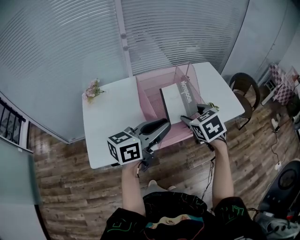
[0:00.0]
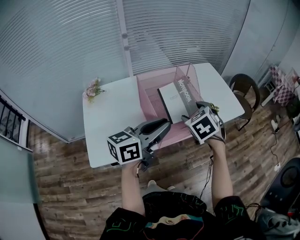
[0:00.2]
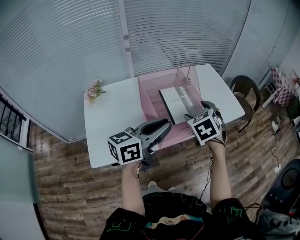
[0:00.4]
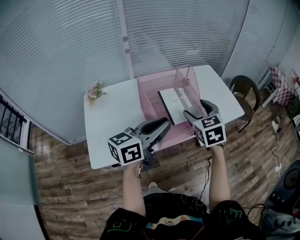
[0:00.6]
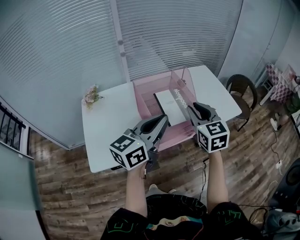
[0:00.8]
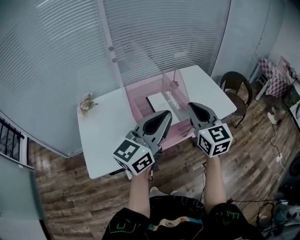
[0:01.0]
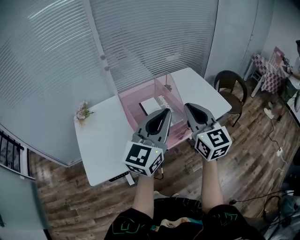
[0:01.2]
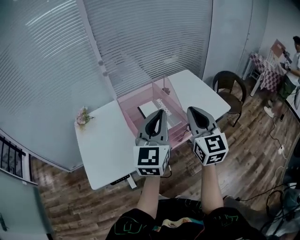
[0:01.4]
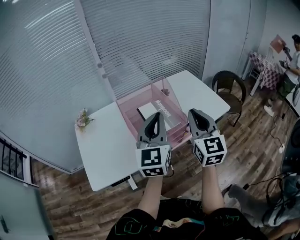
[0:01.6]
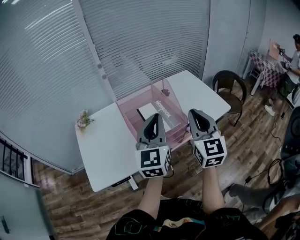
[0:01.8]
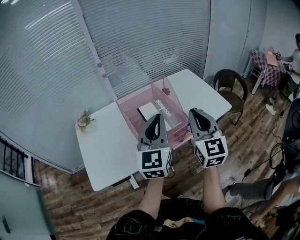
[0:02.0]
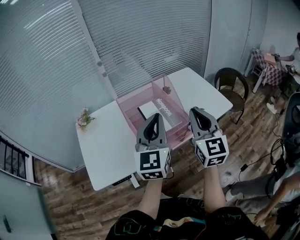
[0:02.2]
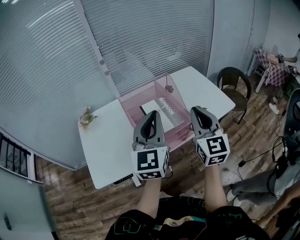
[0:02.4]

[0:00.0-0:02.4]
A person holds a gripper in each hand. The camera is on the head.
0:00.0 to 0:01.2: Both grippers move upward and to the right, approximately 15 cm. The right gripper angles its fingers upward, by roughly 50 degrees, and closes up, while the left gripper rotates approximately 40 degrees.
0:01.2 to 0:02.4: The left gripper rotates approximately 20 degrees.

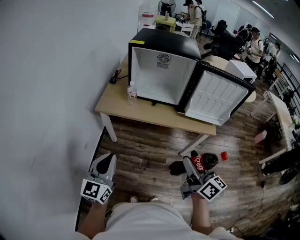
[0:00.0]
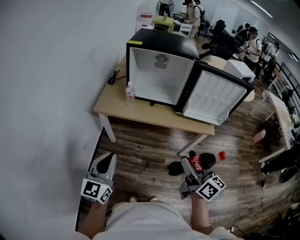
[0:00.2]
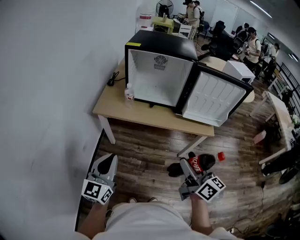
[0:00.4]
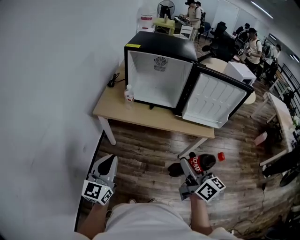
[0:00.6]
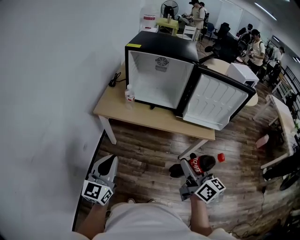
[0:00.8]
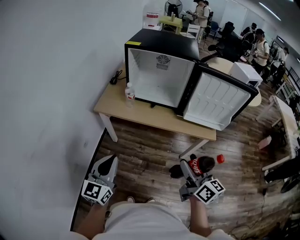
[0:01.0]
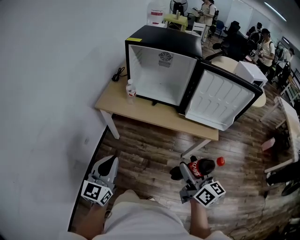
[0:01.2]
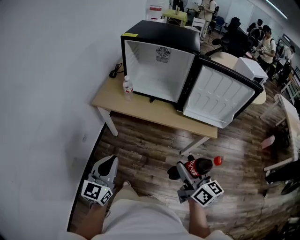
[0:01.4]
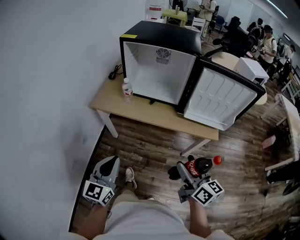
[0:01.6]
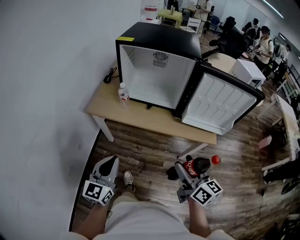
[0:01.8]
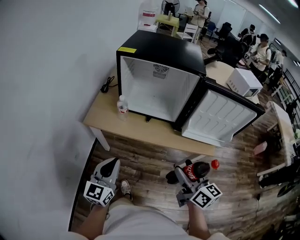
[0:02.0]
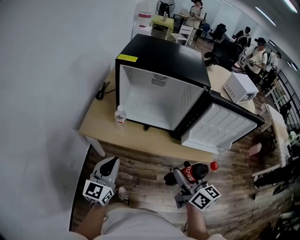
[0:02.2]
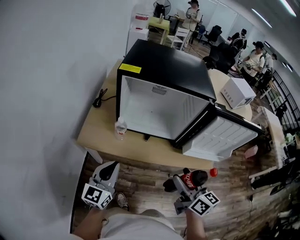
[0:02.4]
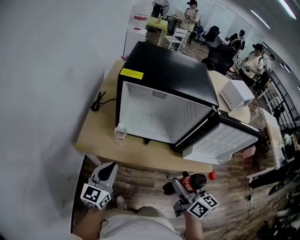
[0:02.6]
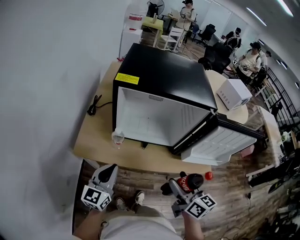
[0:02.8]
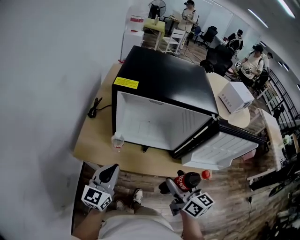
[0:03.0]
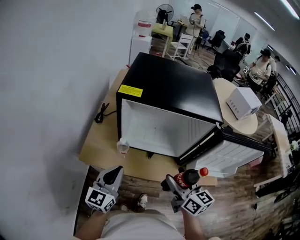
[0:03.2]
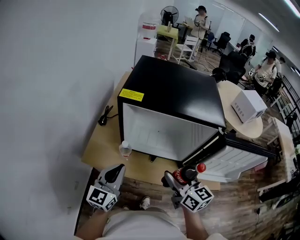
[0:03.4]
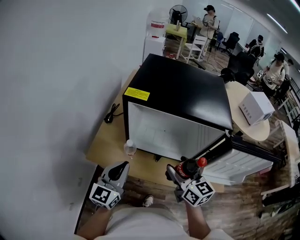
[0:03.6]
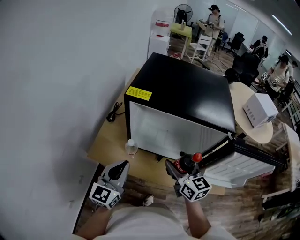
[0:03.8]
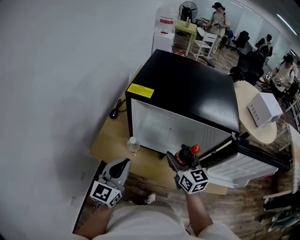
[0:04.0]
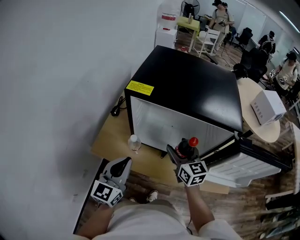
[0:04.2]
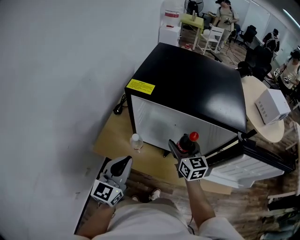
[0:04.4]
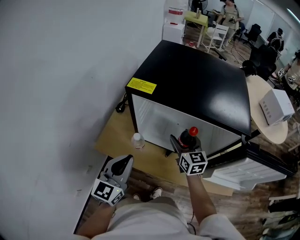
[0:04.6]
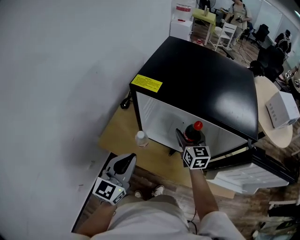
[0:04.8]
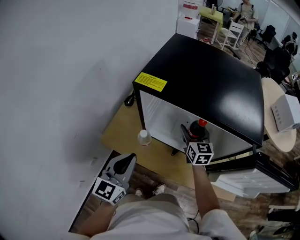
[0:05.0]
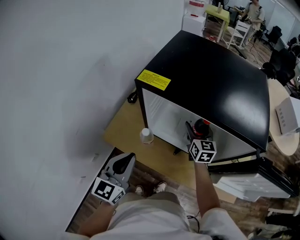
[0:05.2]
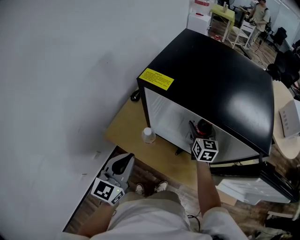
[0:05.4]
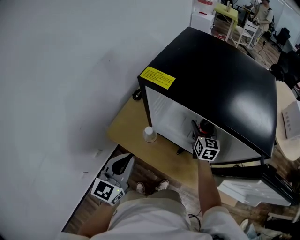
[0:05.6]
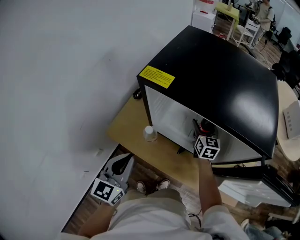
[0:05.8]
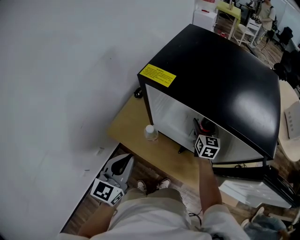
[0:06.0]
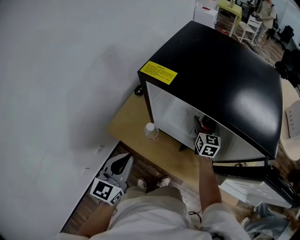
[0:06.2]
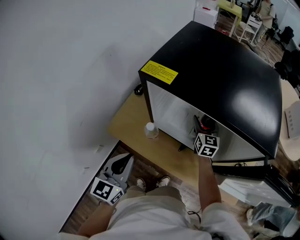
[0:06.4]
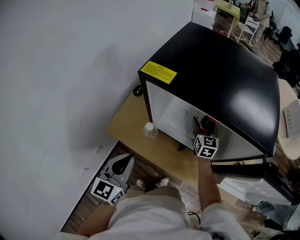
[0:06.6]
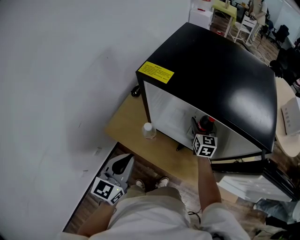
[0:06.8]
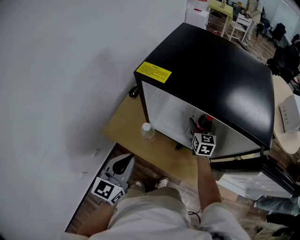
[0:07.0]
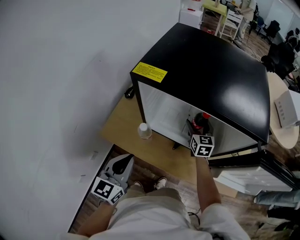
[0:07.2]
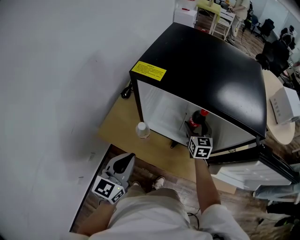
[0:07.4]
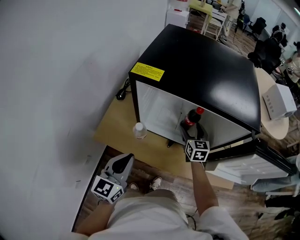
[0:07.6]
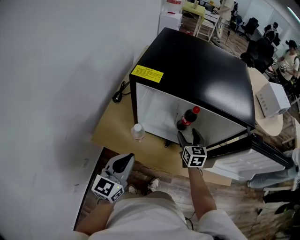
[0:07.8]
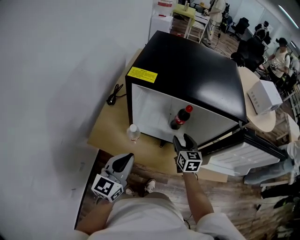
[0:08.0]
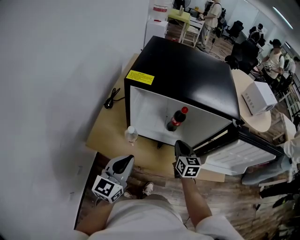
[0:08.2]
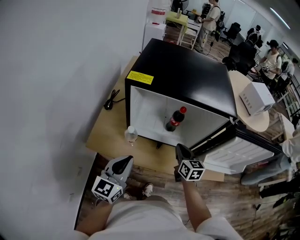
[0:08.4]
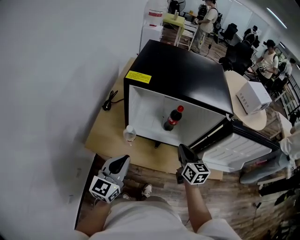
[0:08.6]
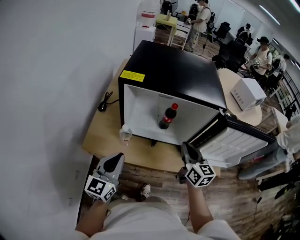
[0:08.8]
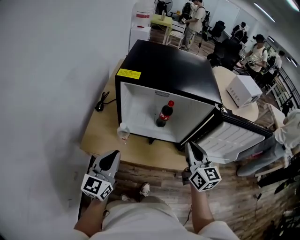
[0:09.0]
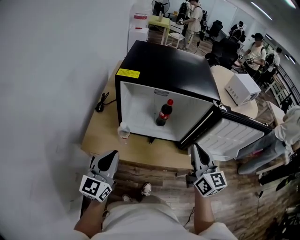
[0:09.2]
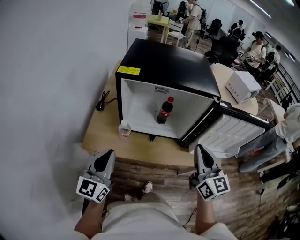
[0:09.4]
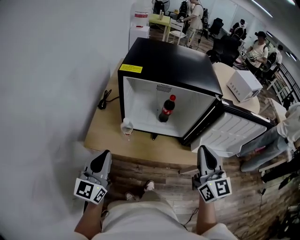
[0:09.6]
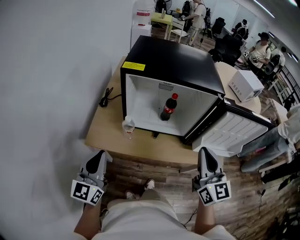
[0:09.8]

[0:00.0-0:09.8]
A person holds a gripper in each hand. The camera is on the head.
0:00.0 to 0:01.4: Both grippers travel together to the right, approximately 10 cm.
0:01.4 to 0:02.8: The left gripper shifts approximately 30 cm forward; the right gripper goes approximately 25 cm forward and to the left.
0:02.8 to 0:04.2: The left gripper moves forward, some 5 cm, while the right gripper is displaced forward by about 25 cm, and turns by roughly 20 degrees.
0:04.2 to 0:05.6: The right gripper goes approximately 20 cm forward and downward.
0:05.6 to 0:07.0: The grippers move only a little.
0:07.0 to 0:08.4: The right gripper travels backward by approximately 20 cm, and closes up.
0:08.4 to 0:09.8: The left gripper moves to the left, backward and upward, approximately 15 cm, while the right gripper goes some 25 cm upward and backward, and turns by some 30 degrees.

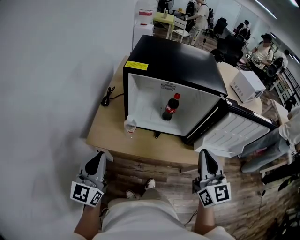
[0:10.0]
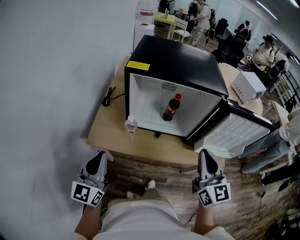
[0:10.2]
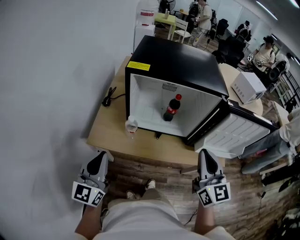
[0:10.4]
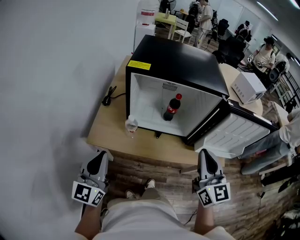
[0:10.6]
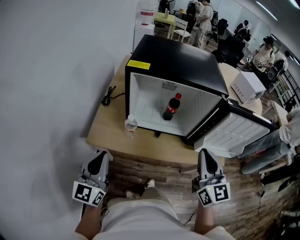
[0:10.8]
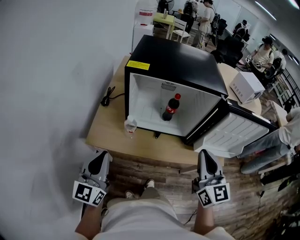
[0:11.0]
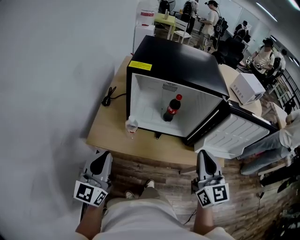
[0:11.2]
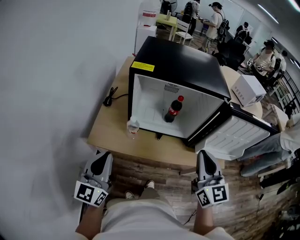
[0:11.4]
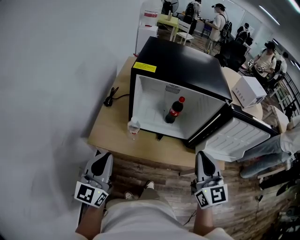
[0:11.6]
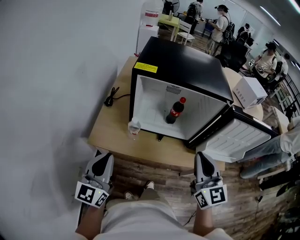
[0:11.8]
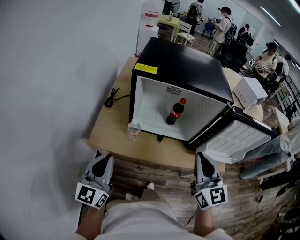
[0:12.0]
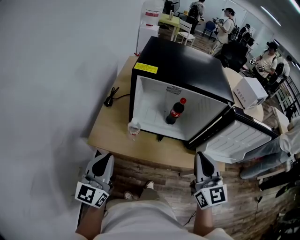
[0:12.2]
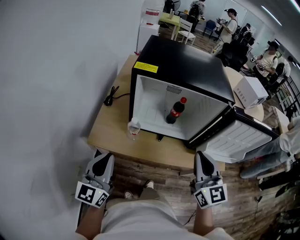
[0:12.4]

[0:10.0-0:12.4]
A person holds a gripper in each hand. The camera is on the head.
0:10.0 to 0:12.4: The grippers move only a little.

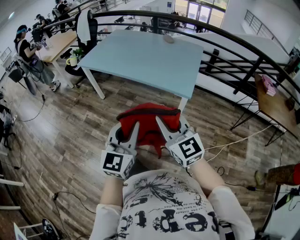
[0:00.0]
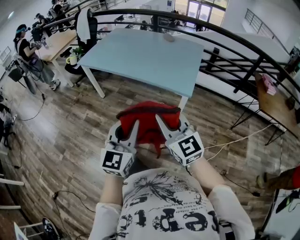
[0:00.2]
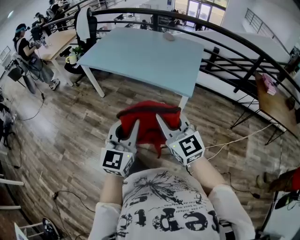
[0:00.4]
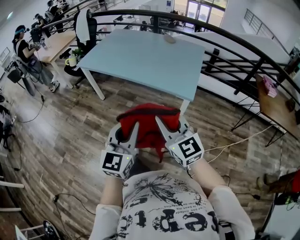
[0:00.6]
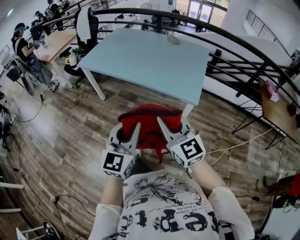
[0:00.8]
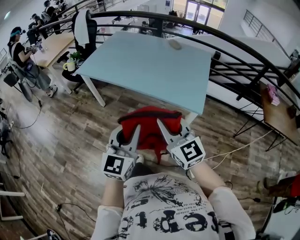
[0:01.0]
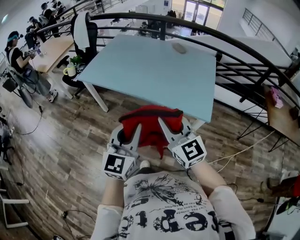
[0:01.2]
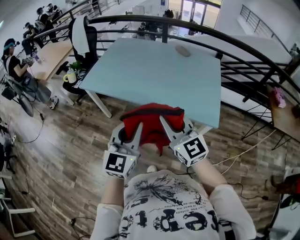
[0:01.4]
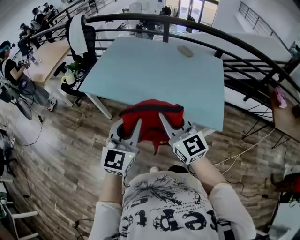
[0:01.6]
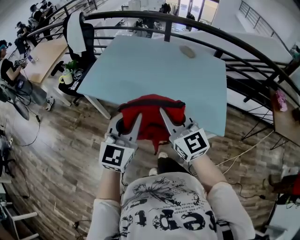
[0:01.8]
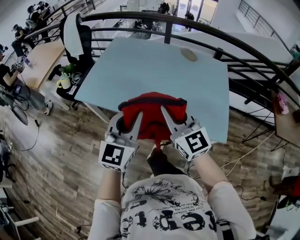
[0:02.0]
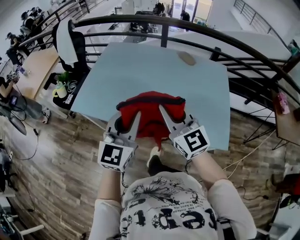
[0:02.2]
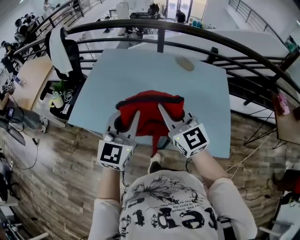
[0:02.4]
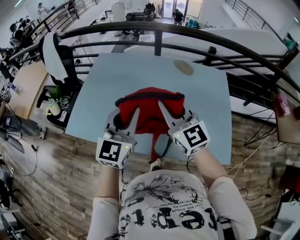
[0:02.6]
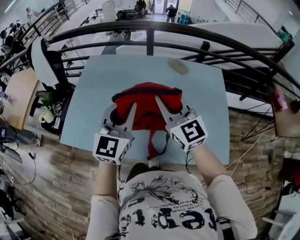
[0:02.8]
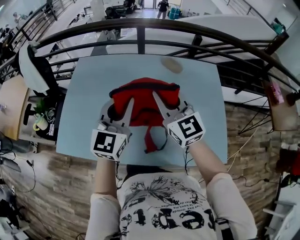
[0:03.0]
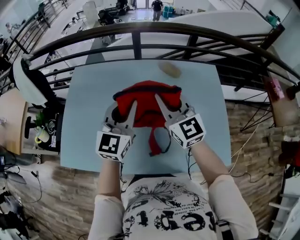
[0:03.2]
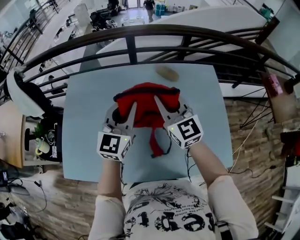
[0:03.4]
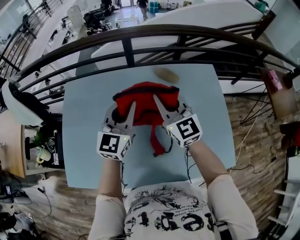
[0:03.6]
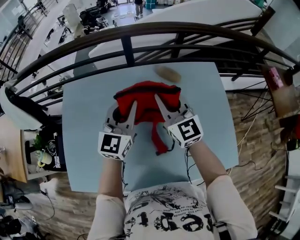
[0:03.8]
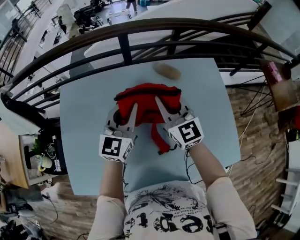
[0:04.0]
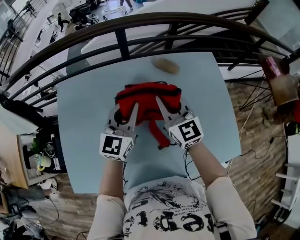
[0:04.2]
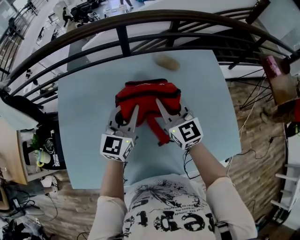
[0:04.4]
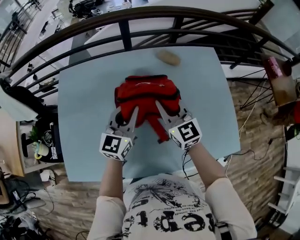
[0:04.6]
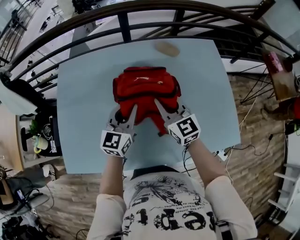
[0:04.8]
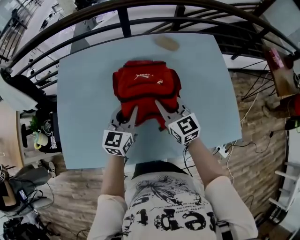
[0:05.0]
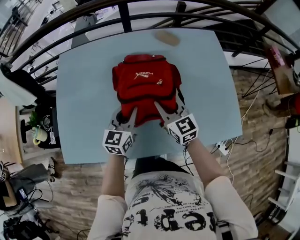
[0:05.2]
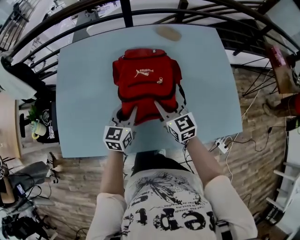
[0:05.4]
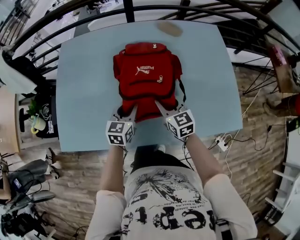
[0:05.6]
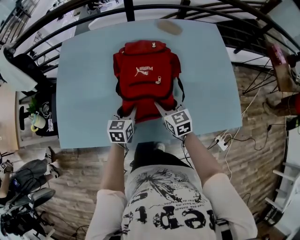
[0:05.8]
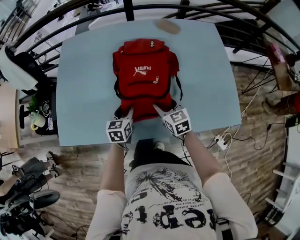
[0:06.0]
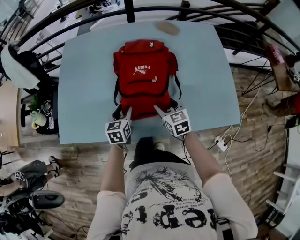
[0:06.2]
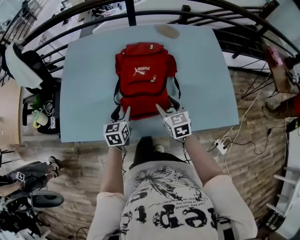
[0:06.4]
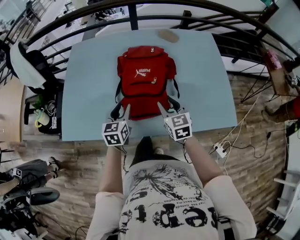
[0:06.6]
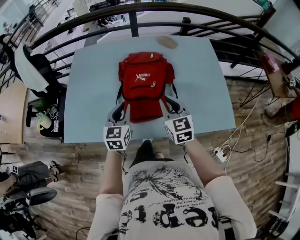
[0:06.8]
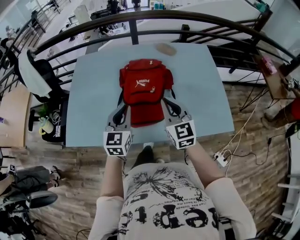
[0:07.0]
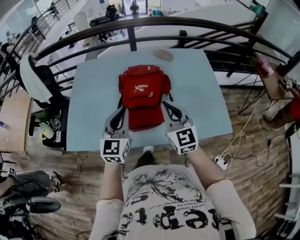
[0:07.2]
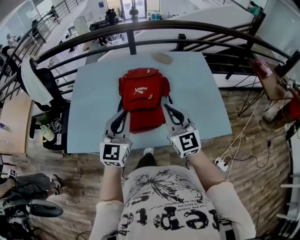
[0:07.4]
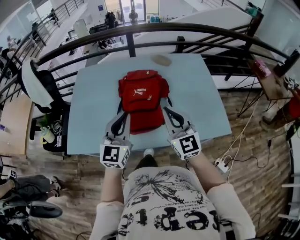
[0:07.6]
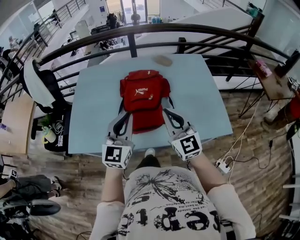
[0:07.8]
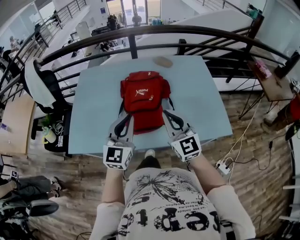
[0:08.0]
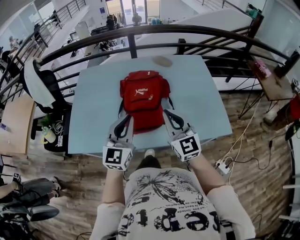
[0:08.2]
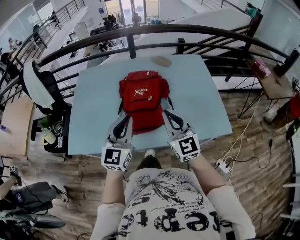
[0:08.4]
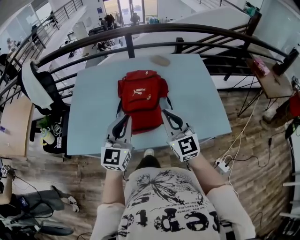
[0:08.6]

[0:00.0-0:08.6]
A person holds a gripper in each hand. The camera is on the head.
0:00.0 to 0:01.4: Both grippers move forward and to the left, roughly 35 cm.
0:01.4 to 0:02.8: The pair of grippers is taken forward, about 50 cm.
0:02.8 to 0:04.4: The grippers both shift forward and downward by approximately 25 cm. The right gripper turns by some 20 degrees; the left gripper swivels some 20 degrees.
0:04.4 to 0:05.8: The right gripper shifts some 30 cm backward and downward, changes its angle by some 30 degrees, and opens its fingers. Meanwhile the left gripper moves downward and backward, roughly 30 cm, rotates approximately 30 degrees, and opens up.
0:05.8 to 0:07.2: The right gripper travels upward and backward by roughly 25 cm, rotates about 30 degrees, and closes; the left gripper heads upward, covering approximately 25 cm, swivels some 30 degrees, and closes up.
0:07.2 to 0:08.6: The left gripper moves about 5 cm.
